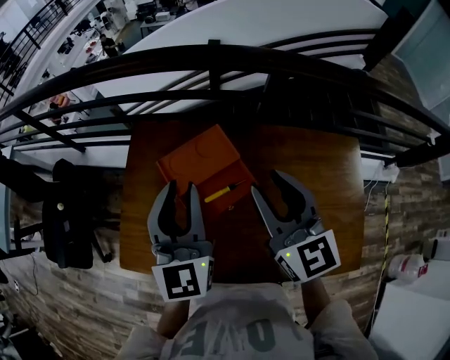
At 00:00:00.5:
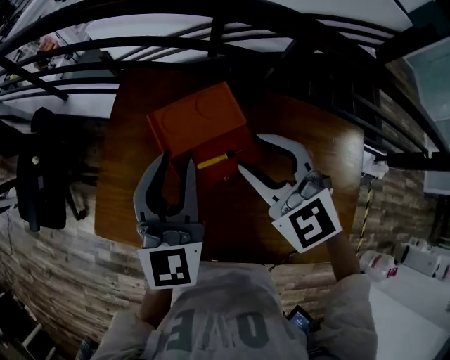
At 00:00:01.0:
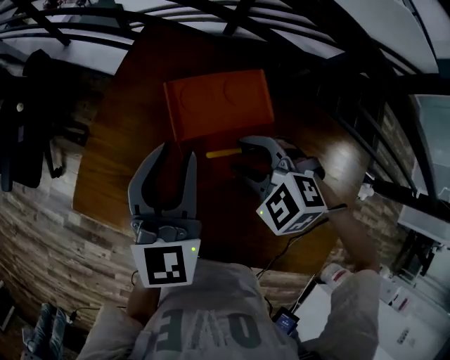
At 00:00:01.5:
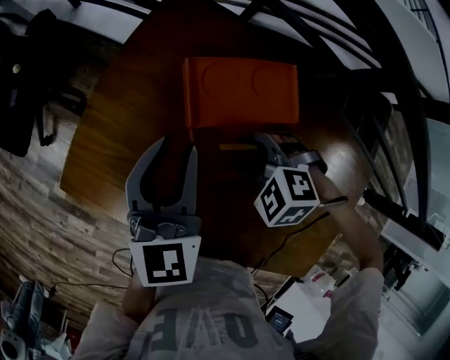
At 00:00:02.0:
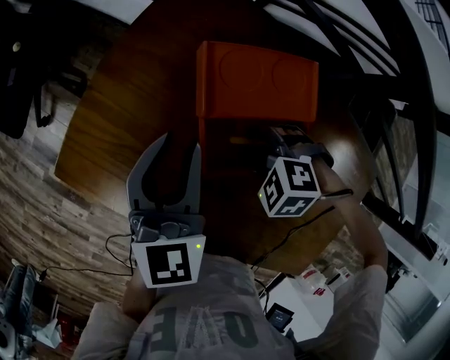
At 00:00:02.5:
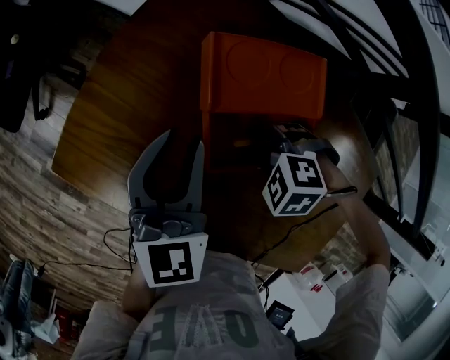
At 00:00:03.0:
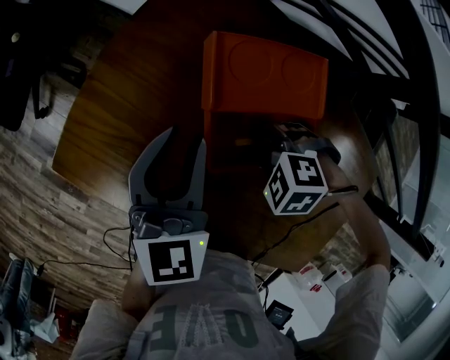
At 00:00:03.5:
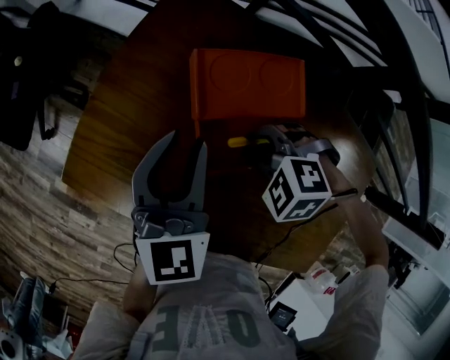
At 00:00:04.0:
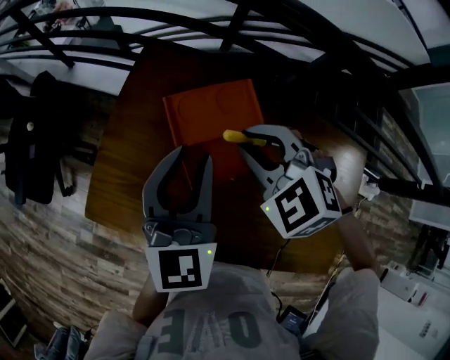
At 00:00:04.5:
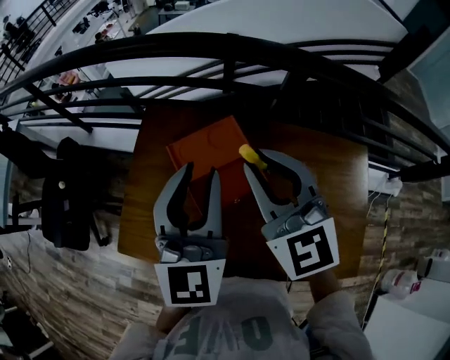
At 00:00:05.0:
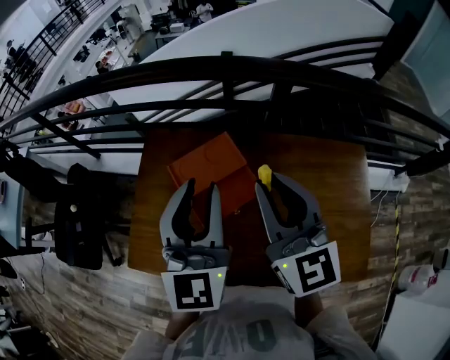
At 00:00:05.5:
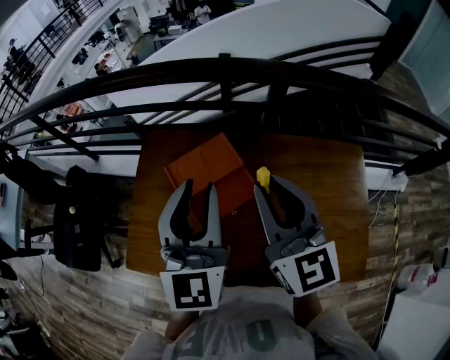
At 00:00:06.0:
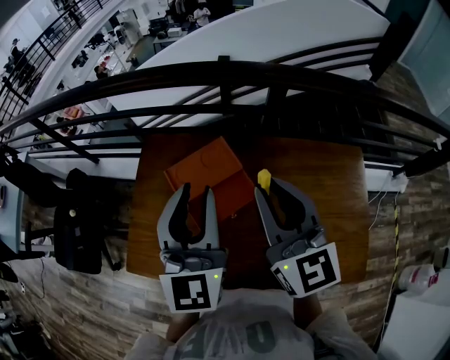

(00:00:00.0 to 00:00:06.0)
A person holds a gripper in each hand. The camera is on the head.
00:00:00.0 - 00:00:02.0: The left gripper travels downward by approximately 20 cm, and swivels approximately 20 degrees. The right gripper travels downward by approximately 30 cm, and angles its fingers downward, by approximately 70 degrees.
00:00:02.0 - 00:00:04.0: The left gripper travels upward by some 10 cm, while the right gripper moves upward, some 20 cm, tips its fingers upward by some 30 degrees, and closes up.
00:00:04.0 - 00:00:06.0: The left gripper travels upward and to the right by approximately 15 cm. The right gripper goes roughly 20 cm upward, to the right and backward, and angles its fingers upward, by about 50 degrees.

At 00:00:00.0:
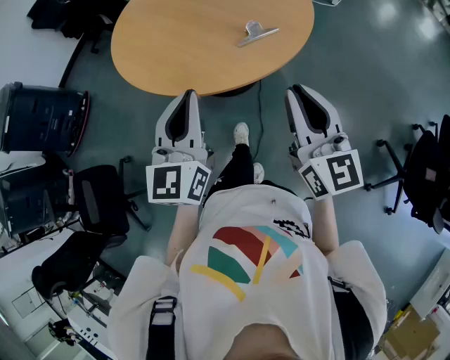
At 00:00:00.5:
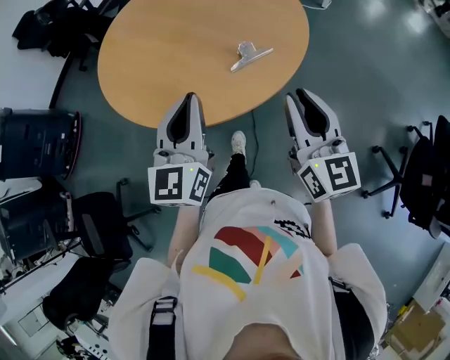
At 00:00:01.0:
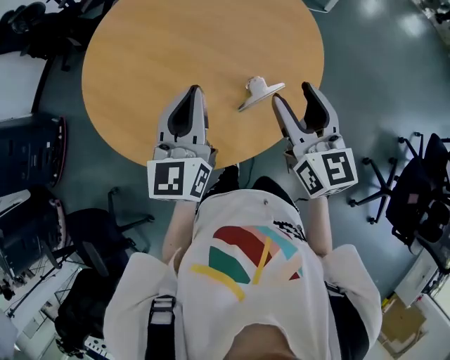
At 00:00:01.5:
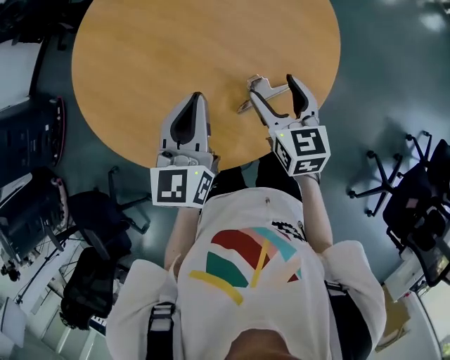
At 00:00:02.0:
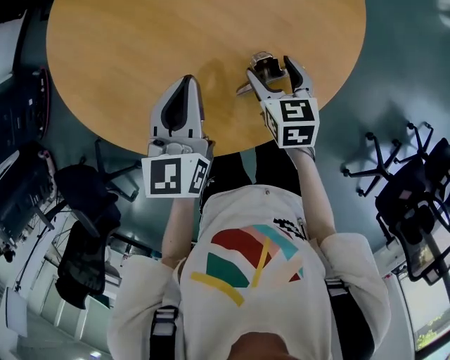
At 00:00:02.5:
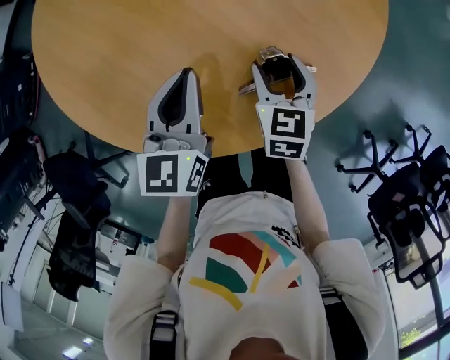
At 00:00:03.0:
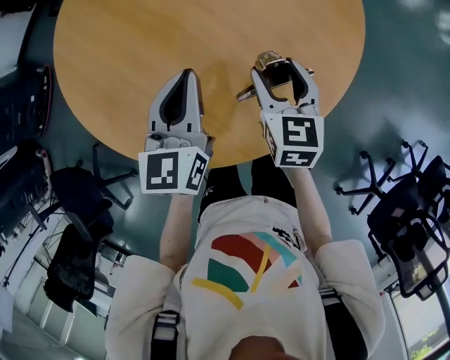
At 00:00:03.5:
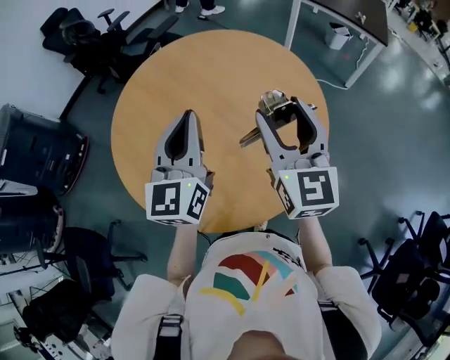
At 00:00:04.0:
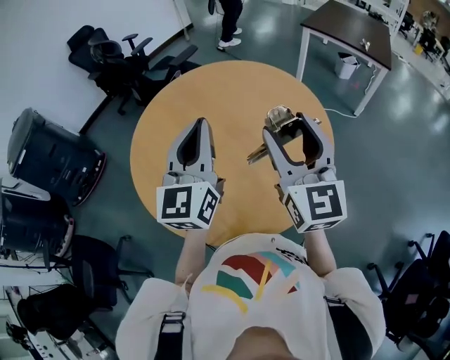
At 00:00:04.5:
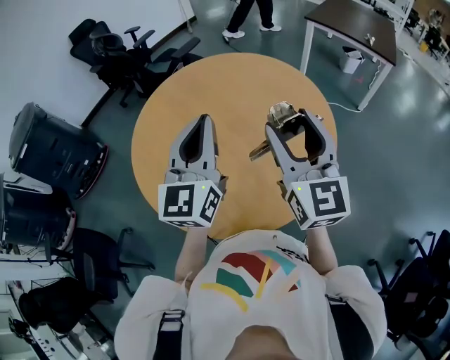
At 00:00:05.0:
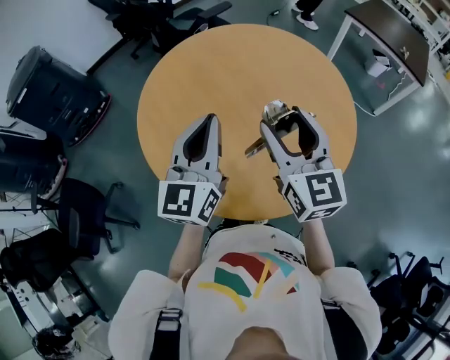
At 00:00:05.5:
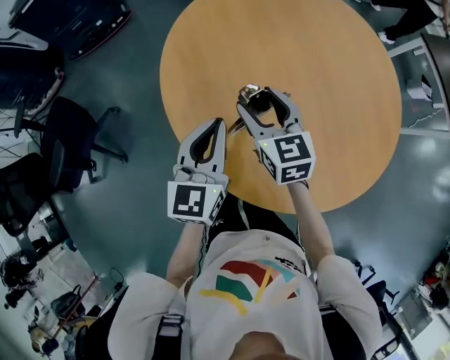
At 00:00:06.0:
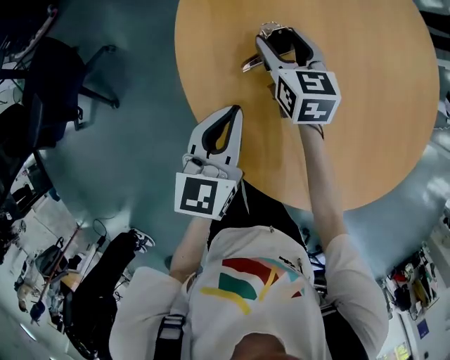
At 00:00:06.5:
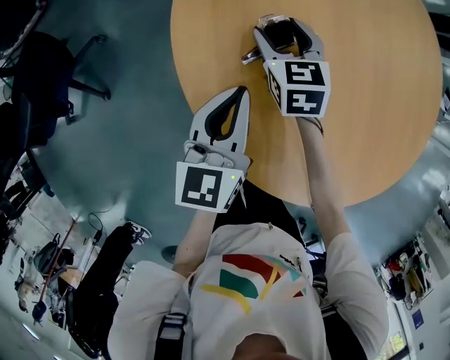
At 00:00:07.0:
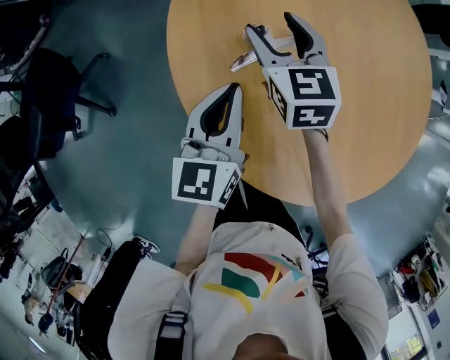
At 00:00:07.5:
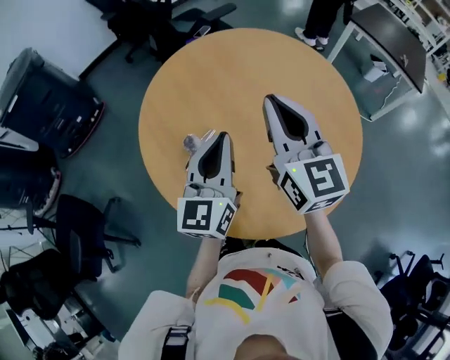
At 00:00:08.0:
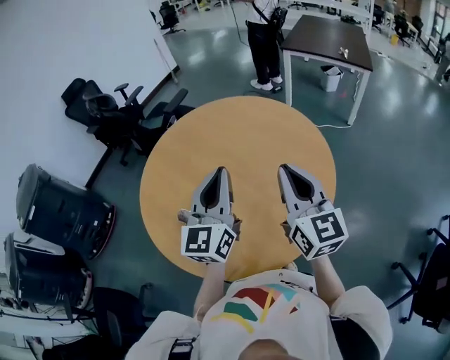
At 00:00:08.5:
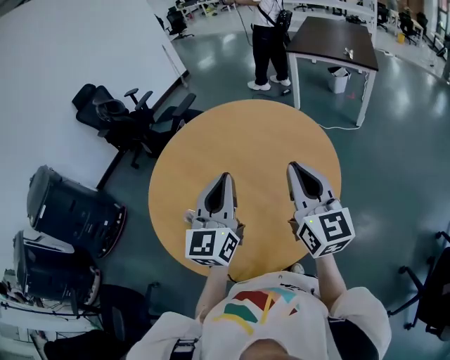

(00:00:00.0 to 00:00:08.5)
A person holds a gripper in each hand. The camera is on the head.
00:00:00.0 - 00:00:02.0: Both grippers are carried forward, about 40 cm. The right gripper is displaced downward by about 30 cm, tips its fingers downward by some 50 degrees, and opens. The left gripper shifts about 20 cm downward, and turns by roughly 20 degrees.
00:00:02.0 - 00:00:04.0: The grippers both shift upward by about 35 cm. The right gripper angles its fingers upward, by about 50 degrees, while the left gripper swivels roughly 30 degrees.
00:00:04.0 - 00:00:06.5: The right gripper changes place by some 70 cm, and tilts its fingers approximately 50 degrees downward. The left gripper is displaced downward by about 35 cm, and swivels approximately 40 degrees.
00:00:06.5 - 00:00:08.5: The right gripper shifts by roughly 70 cm, points its fingers approximately 50 degrees further upward, and closes; the left gripper changes place by some 50 cm, and changes its angle by roughly 50 degrees.

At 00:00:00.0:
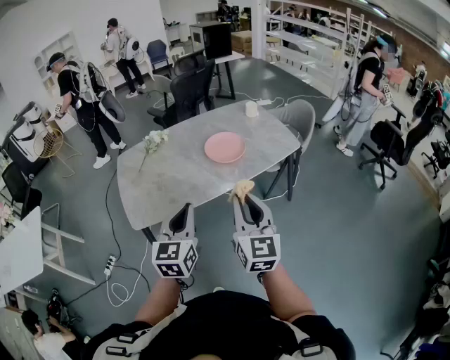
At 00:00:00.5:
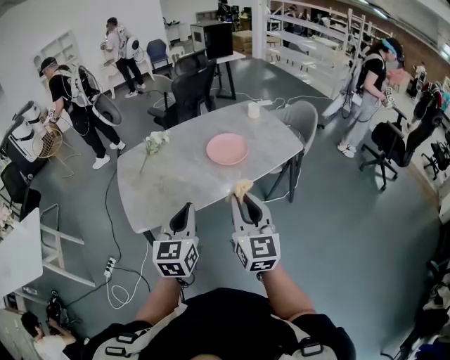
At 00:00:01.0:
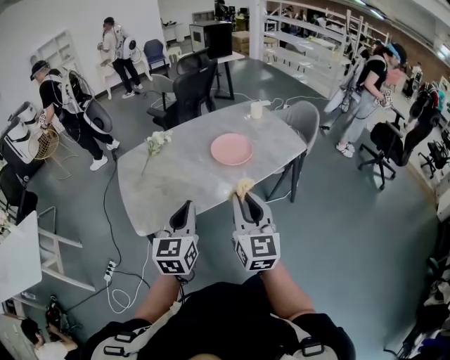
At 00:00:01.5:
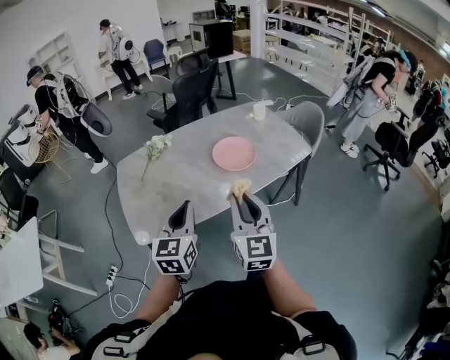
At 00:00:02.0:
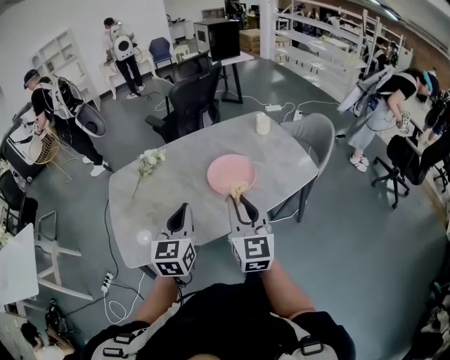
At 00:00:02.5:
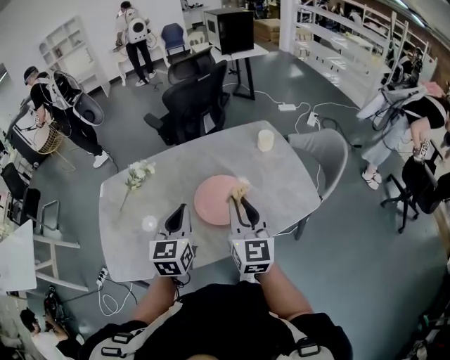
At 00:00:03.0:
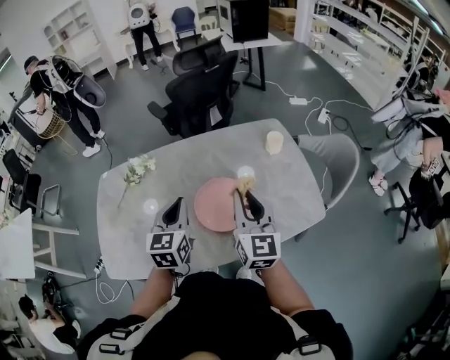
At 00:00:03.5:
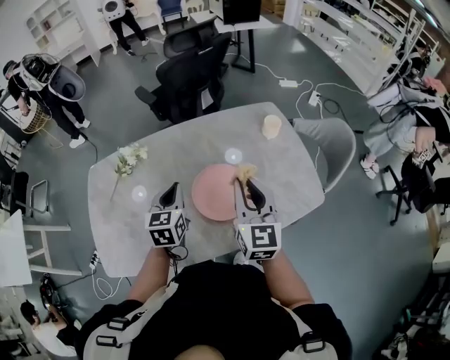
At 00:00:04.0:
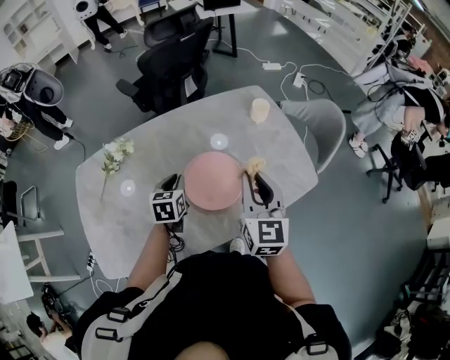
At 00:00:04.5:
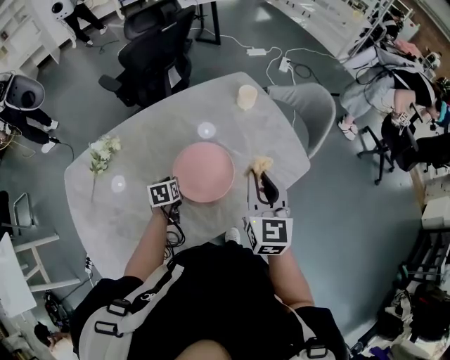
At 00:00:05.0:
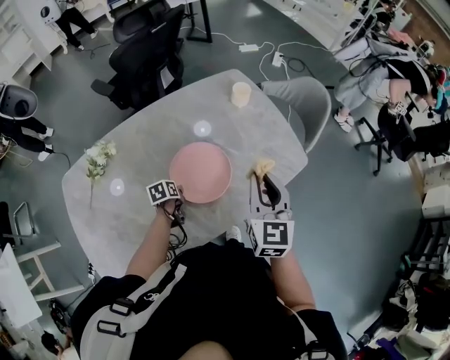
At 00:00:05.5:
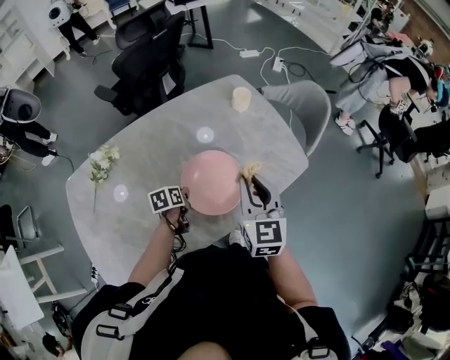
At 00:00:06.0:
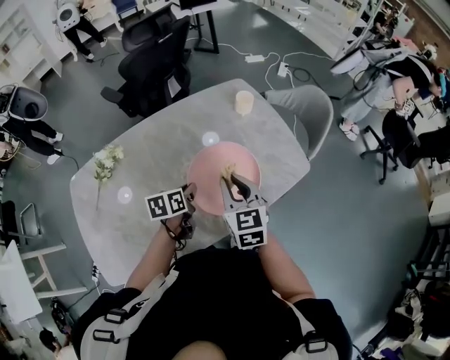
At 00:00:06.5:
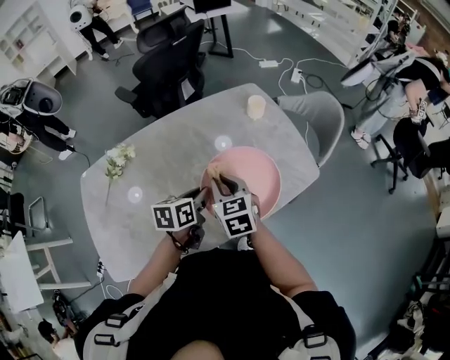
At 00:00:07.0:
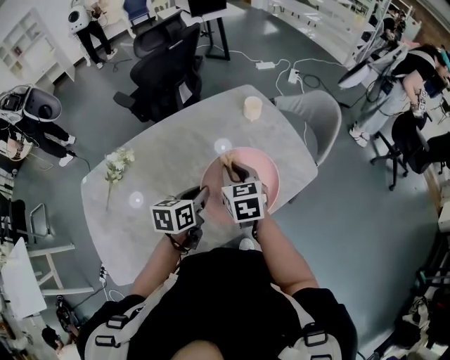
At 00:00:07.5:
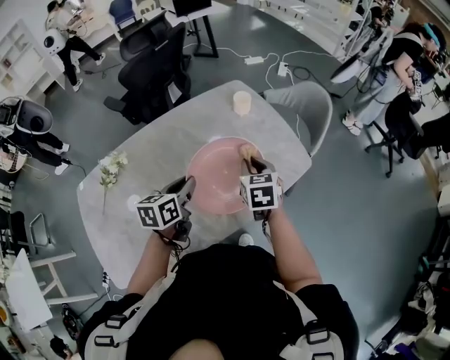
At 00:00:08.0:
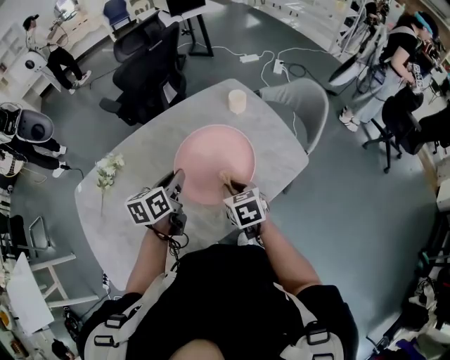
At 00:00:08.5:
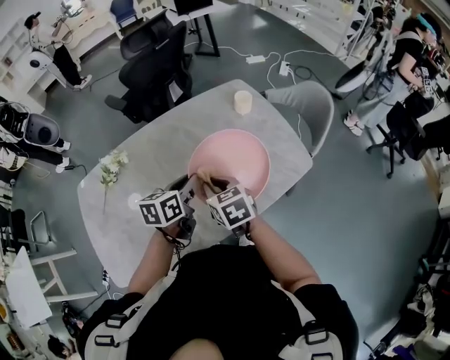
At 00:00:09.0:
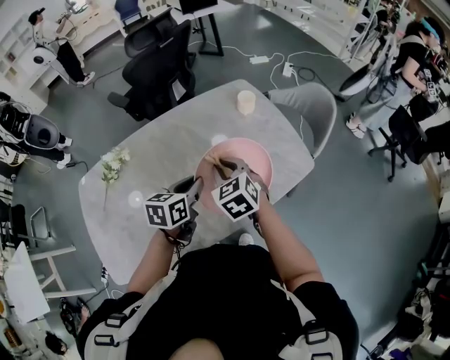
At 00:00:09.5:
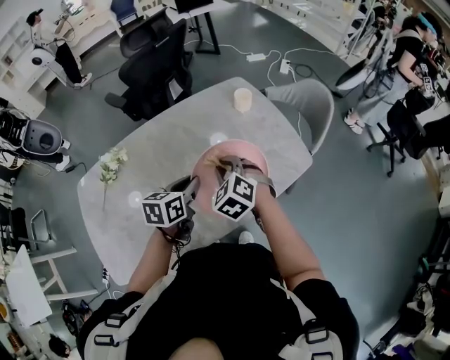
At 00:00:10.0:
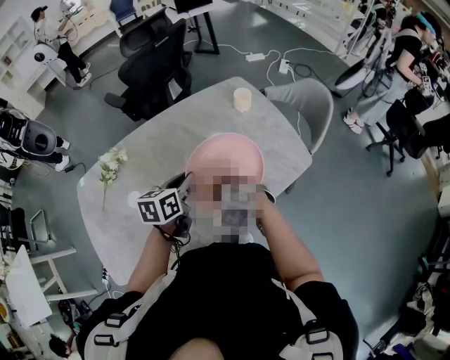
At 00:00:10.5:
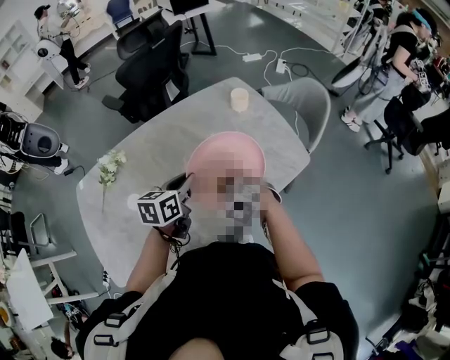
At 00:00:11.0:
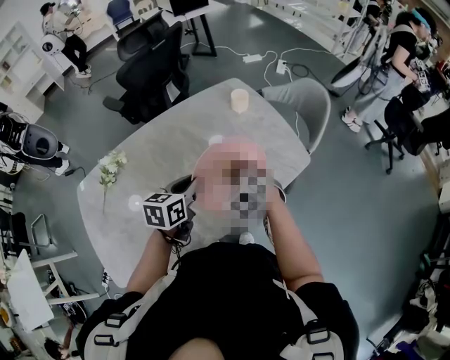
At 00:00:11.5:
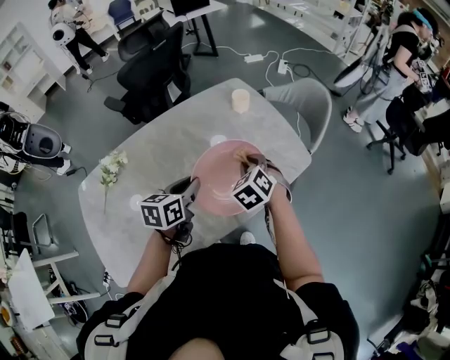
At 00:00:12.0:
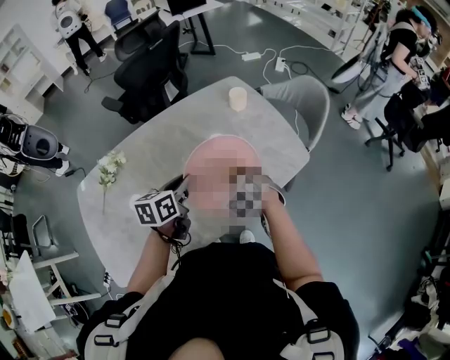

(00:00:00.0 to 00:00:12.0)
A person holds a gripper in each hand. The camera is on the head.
00:00:00.0 - 00:00:02.0: Both grippers move forward, about 20 cm.
00:00:02.0 - 00:00:04.0: The left gripper shifts roughly 35 cm forward and downward, and changes its angle by about 30 degrees; the right gripper is displaced forward and to the right by about 25 cm.
00:00:04.0 - 00:00:06.0: The right gripper shifts some 5 cm downward, and reaches some 5 cm to the right, then returns. The left gripper travels to the right by approximately 10 cm, goes downward and returns, roughly 20 cm each way, and rotates roughly 30 degrees.
00:00:06.0 - 00:00:08.0: The left gripper moves upward, roughly 10 cm; the right gripper goes left and right, roughly 15 cm each way, reversing 2 times, and swivels about 30 degrees.
00:00:08.0 - 00:00:10.0: The right gripper goes approximately 5 cm to the left, goes forward and returns, roughly 5 cm each way, and rolls counterclockwise, seen from behind, by about 50 degrees.
00:00:10.0 - 00:00:12.0: The right gripper goes roughly 5 cm to the right, and rotates approximately 20 degrees.
